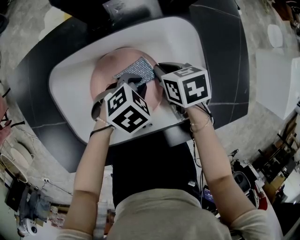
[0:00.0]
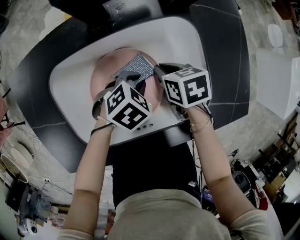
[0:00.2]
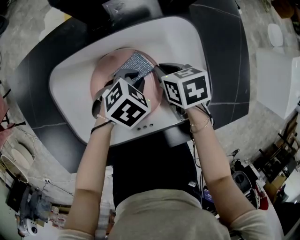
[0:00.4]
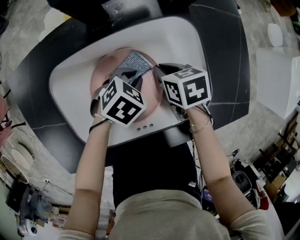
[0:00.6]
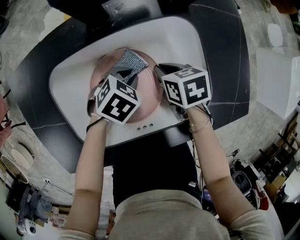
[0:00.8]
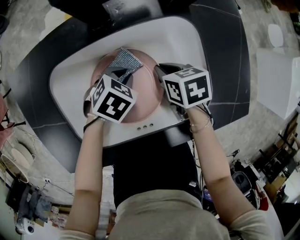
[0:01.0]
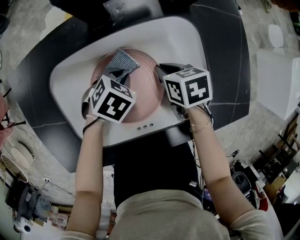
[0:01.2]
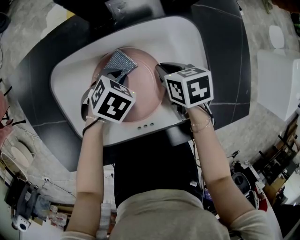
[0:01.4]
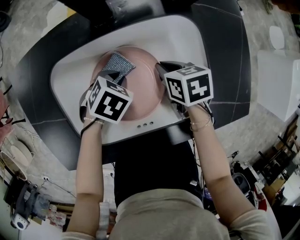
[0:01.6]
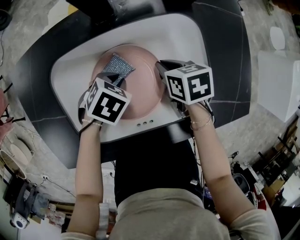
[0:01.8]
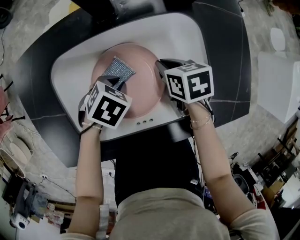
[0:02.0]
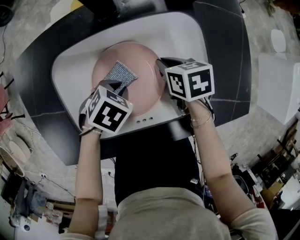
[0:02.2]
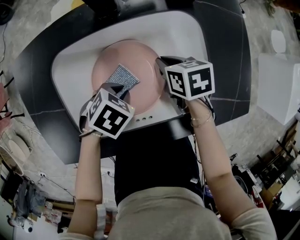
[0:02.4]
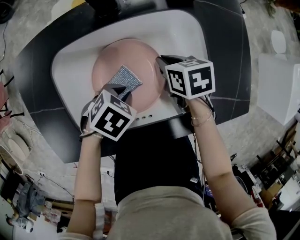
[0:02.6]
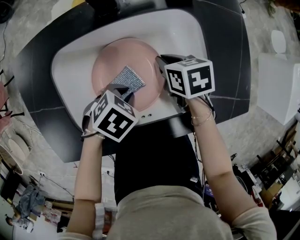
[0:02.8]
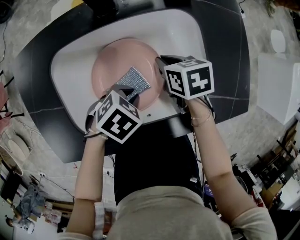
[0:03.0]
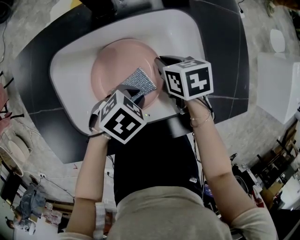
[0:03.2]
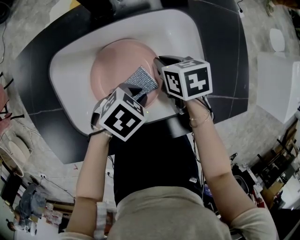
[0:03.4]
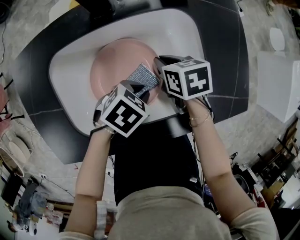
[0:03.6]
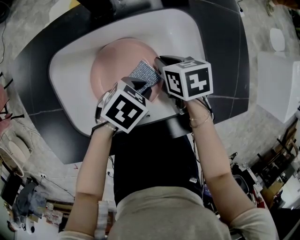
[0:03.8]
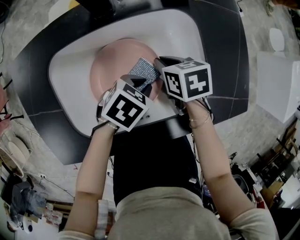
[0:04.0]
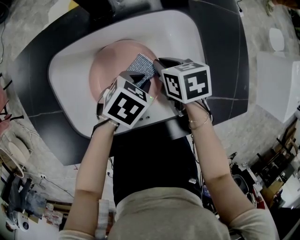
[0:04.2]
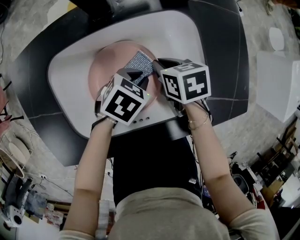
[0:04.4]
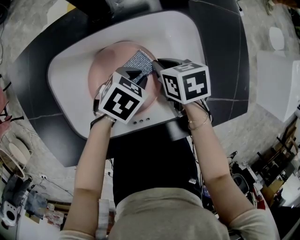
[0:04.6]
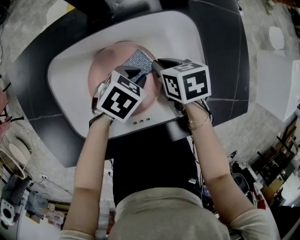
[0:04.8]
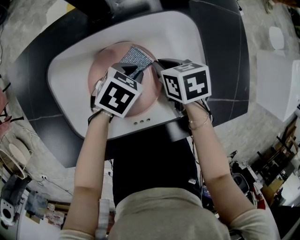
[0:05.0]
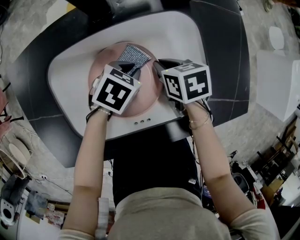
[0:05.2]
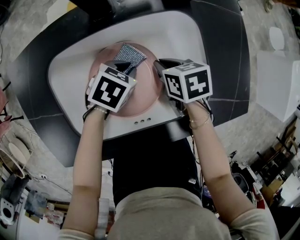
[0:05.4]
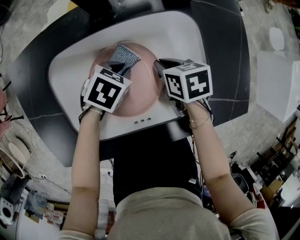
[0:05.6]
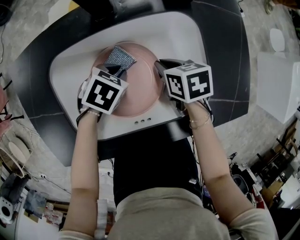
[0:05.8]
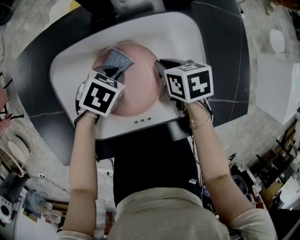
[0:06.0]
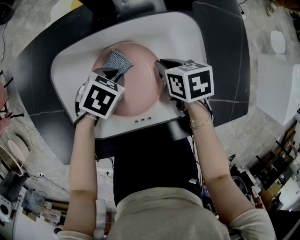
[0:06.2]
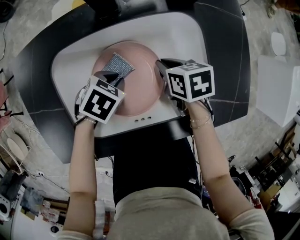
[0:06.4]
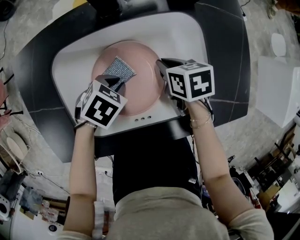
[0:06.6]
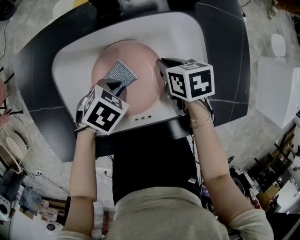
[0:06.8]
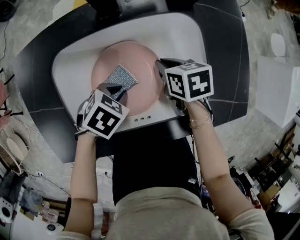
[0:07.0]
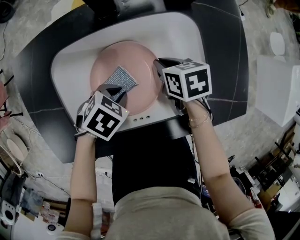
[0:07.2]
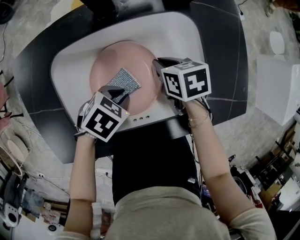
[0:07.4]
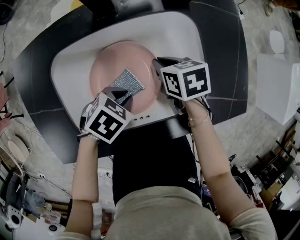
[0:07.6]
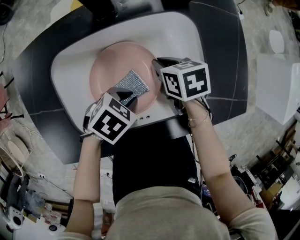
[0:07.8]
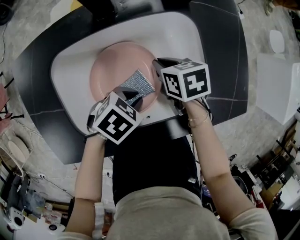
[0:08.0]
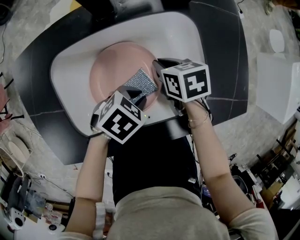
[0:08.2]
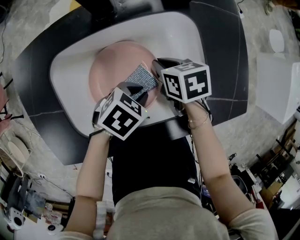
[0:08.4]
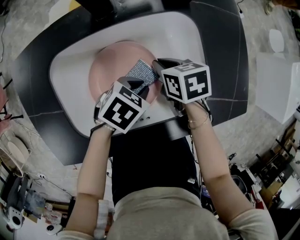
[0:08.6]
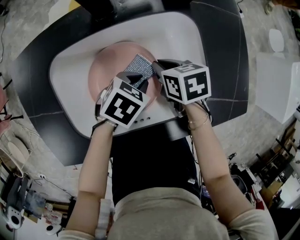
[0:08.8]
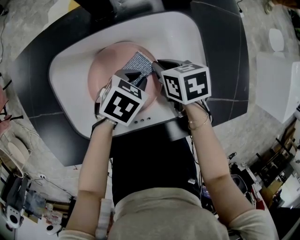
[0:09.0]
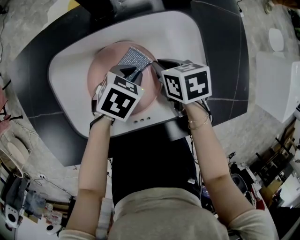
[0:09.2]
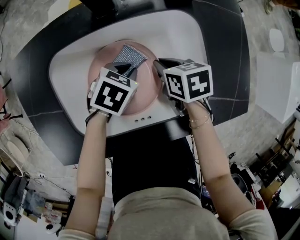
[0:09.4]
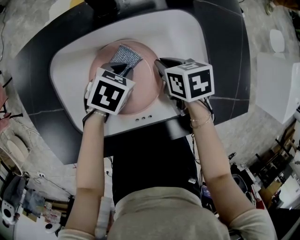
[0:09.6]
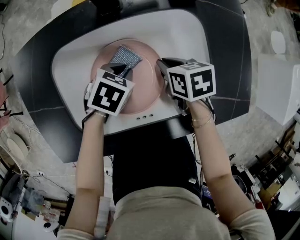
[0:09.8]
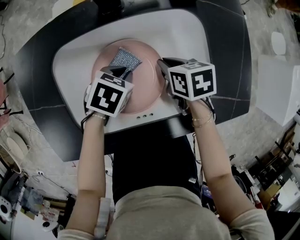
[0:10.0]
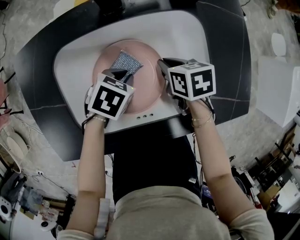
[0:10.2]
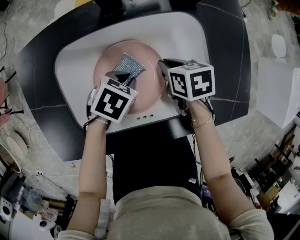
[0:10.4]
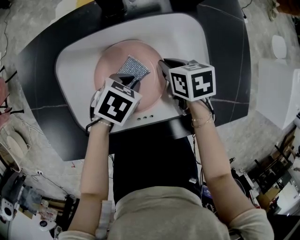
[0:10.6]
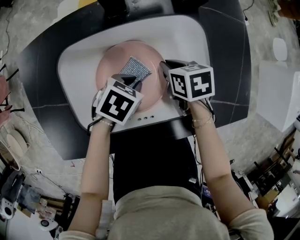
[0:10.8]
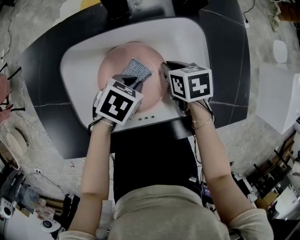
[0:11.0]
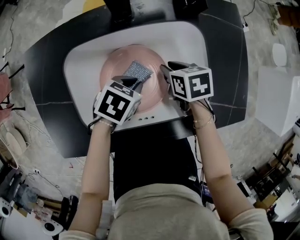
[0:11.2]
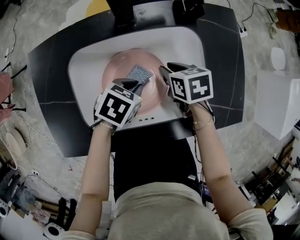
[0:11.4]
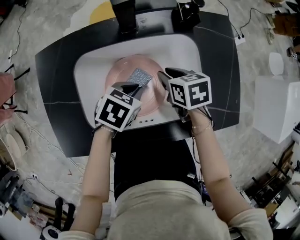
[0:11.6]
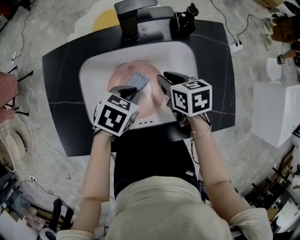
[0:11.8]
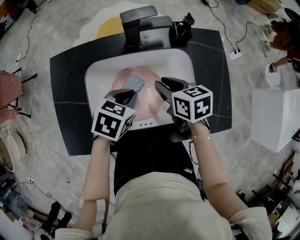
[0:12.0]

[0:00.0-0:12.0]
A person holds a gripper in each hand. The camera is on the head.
0:00.0 to 0:01.6: The left gripper changes place by roughly 10 cm.
0:01.6 to 0:03.0: The left gripper moves some 10 cm.
0:03.0 to 0:04.4: The left gripper shifts by about 5 cm.
0:04.4 to 0:06.0: The left gripper is displaced to the left by roughly 10 cm.
0:06.0 to 0:07.6: The left gripper shifts by roughly 10 cm.
0:07.6 to 0:09.0: The left gripper moves some 10 cm.
0:09.0 to 0:10.4: The left gripper shifts approximately 5 cm to the left.
0:10.4 to 0:12.0: Both grippers move upward, roughly 15 cm. The left gripper changes its angle by about 20 degrees.

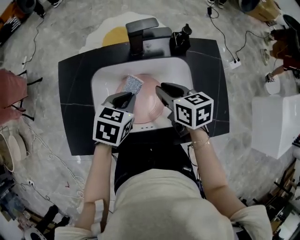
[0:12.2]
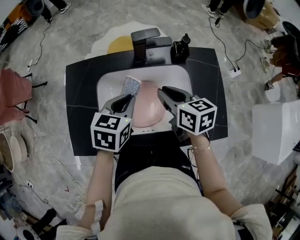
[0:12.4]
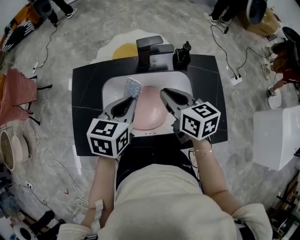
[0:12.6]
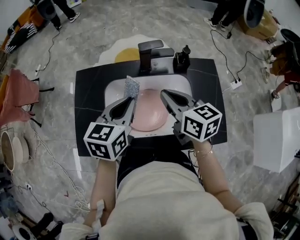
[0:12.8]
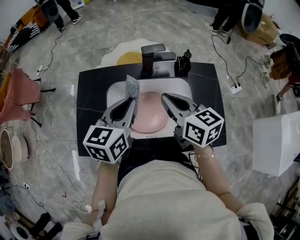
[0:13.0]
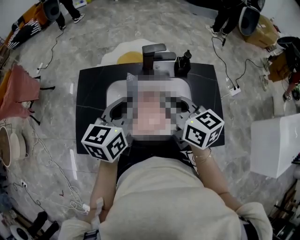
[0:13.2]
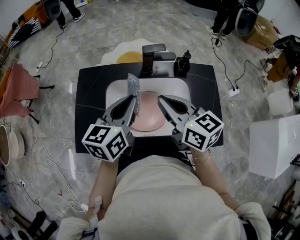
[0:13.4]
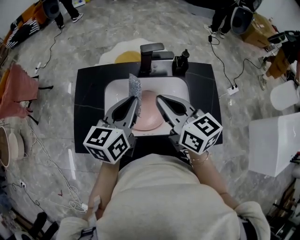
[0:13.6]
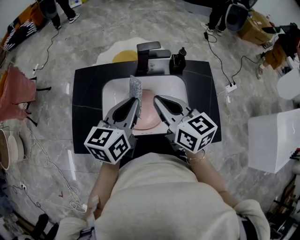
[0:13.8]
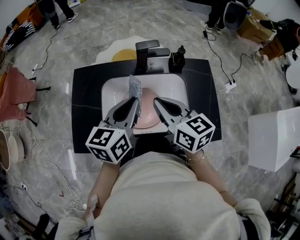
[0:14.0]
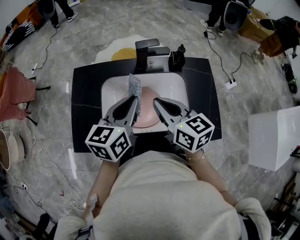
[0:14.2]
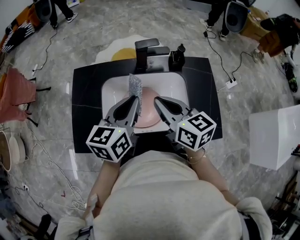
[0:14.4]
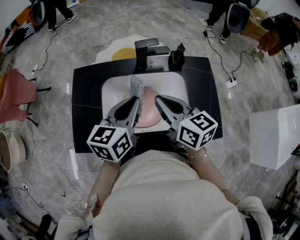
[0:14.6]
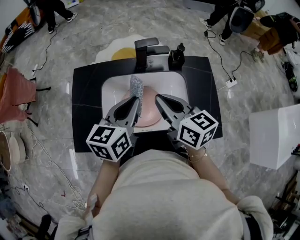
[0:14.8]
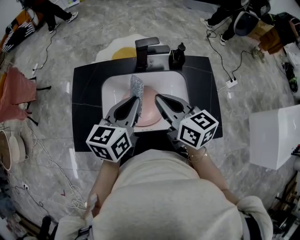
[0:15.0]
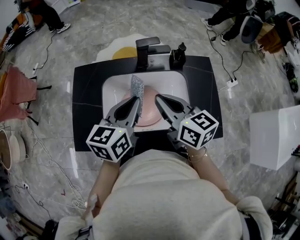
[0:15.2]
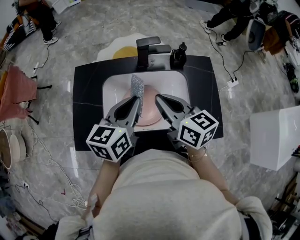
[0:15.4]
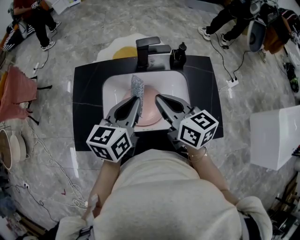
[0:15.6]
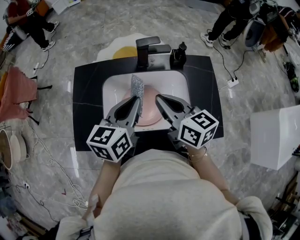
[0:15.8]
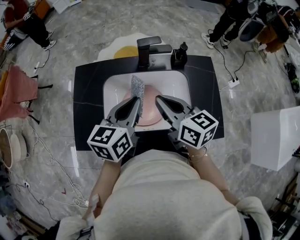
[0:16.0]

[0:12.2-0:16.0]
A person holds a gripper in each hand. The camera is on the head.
0:12.2 to 0:13.4: The grippers both shift upward by about 15 cm. The right gripper turns by some 30 degrees, and closes, while the left gripper points its fingers approximately 30 degrees further upward.
0:13.4 to 0:14.8: The grippers move only a little.
0:14.8 to 0:16.0: Both grippers stay about where they are.

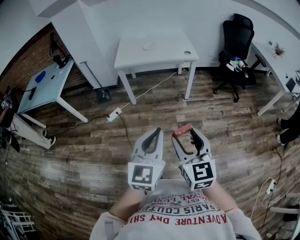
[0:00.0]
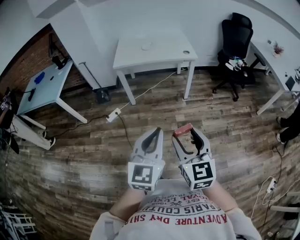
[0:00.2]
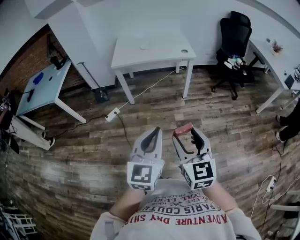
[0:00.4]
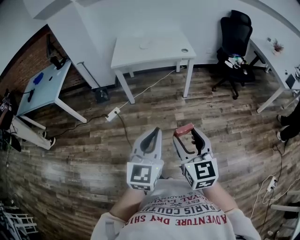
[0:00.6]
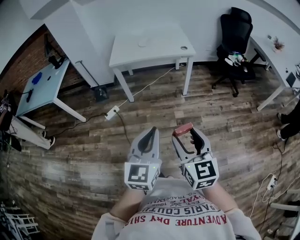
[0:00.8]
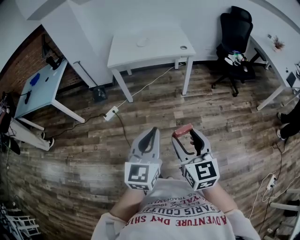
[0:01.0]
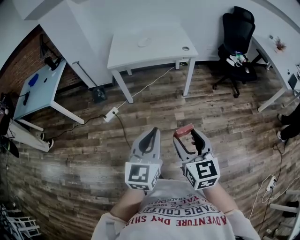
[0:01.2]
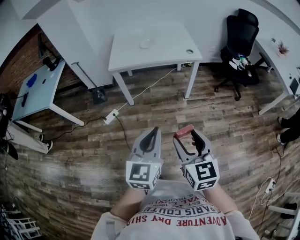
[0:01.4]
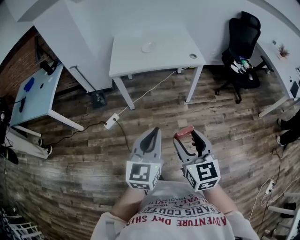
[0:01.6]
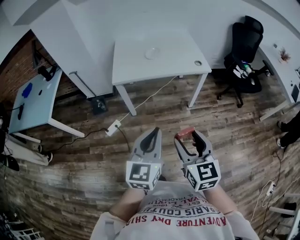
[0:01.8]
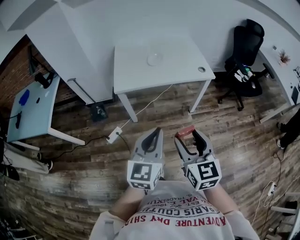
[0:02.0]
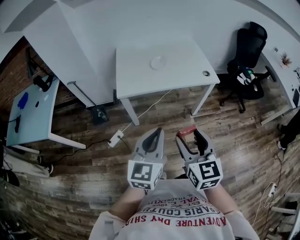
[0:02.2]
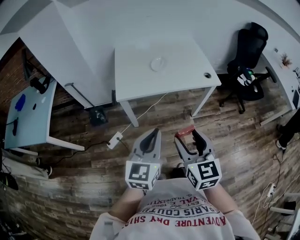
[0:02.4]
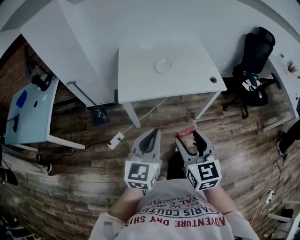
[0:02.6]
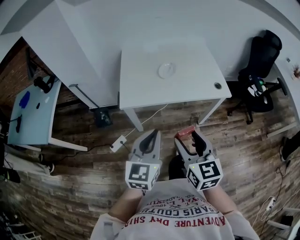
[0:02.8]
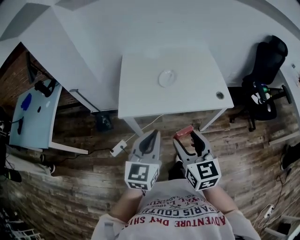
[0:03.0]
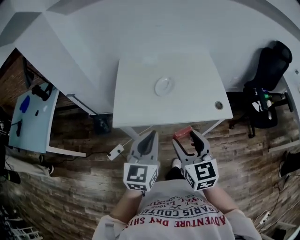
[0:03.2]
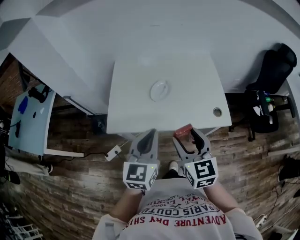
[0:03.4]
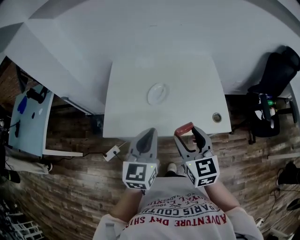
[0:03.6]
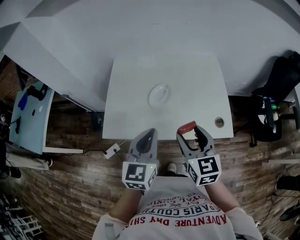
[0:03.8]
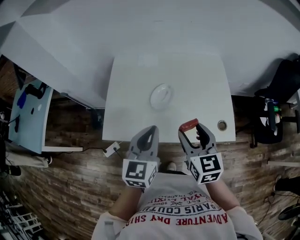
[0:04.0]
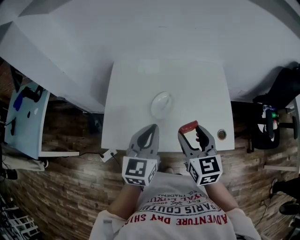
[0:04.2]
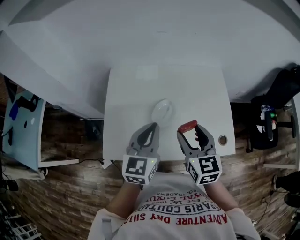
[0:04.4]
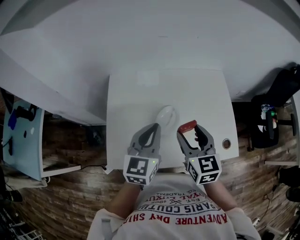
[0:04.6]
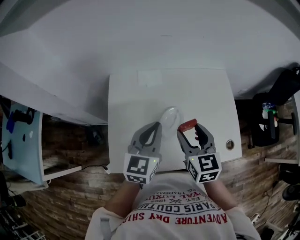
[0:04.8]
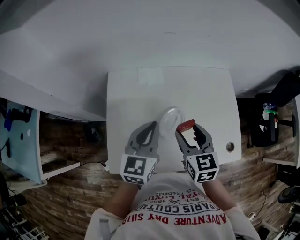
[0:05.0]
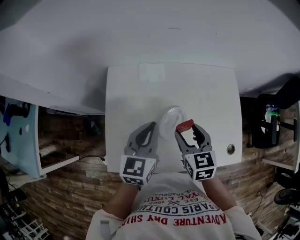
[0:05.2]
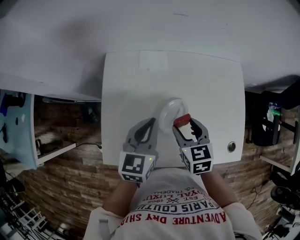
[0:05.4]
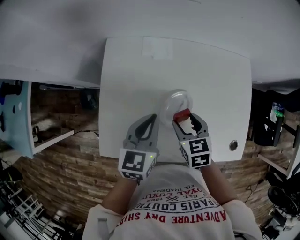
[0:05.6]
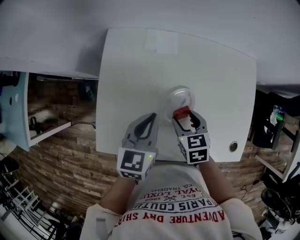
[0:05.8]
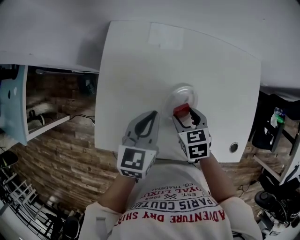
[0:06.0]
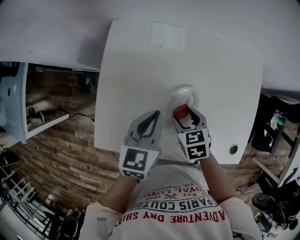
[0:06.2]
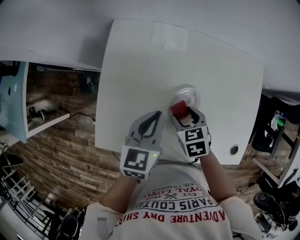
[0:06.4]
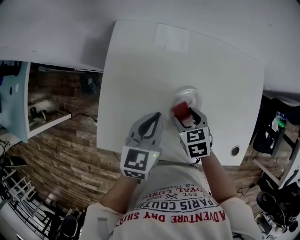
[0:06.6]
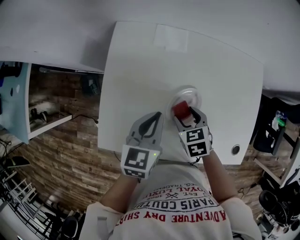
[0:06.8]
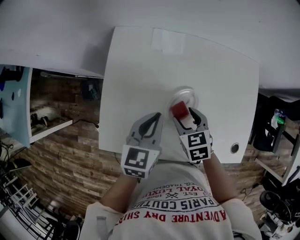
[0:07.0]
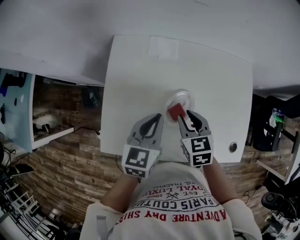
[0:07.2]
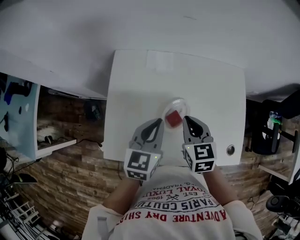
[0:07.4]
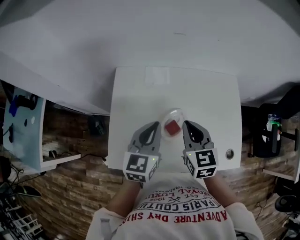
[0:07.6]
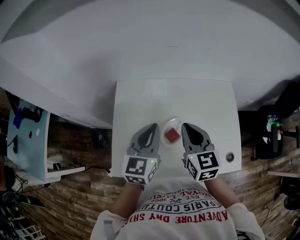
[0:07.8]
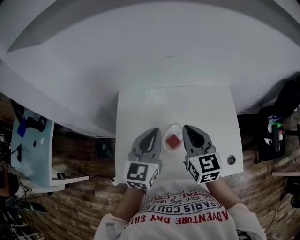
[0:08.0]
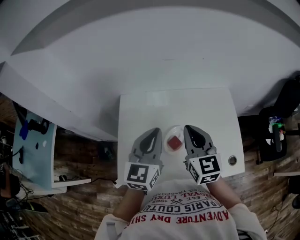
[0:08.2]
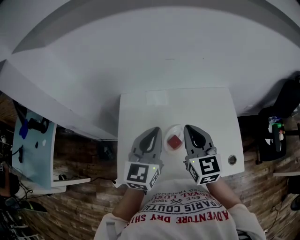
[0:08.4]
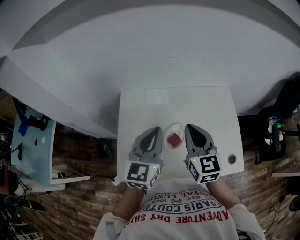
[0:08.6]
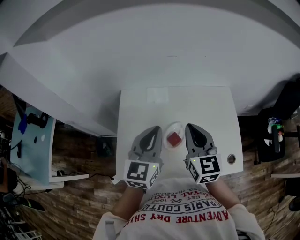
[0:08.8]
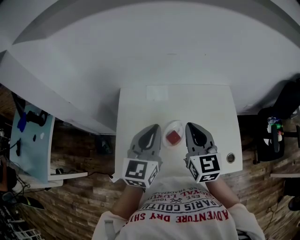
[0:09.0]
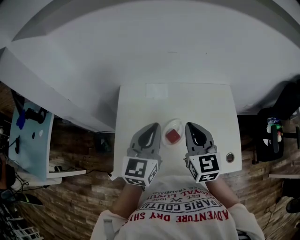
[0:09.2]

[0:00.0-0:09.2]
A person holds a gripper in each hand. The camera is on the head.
0:00.0 to 0:01.6: Both grippers travel together forward, approximately 20 cm.
0:01.6 to 0:03.0: The grippers both shift forward by some 35 cm.
0:03.0 to 0:04.6: The two grippers go approximately 40 cm forward.
0:04.6 to 0:06.2: The left gripper moves downward, some 15 cm, and turns by about 20 degrees. The right gripper moves downward, about 20 cm, and angles its fingers downward, by some 40 degrees.
0:06.2 to 0:07.6: The right gripper goes about 20 cm upward, points its fingers some 30 degrees further upward, and closes up, while the left gripper goes approximately 10 cm upward.
0:07.6 to 0:09.2: The grippers both shift upward by some 10 cm.
